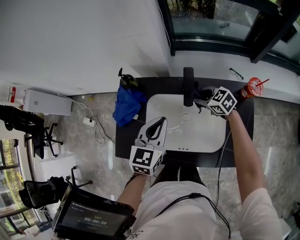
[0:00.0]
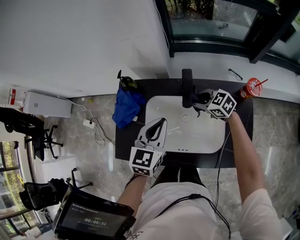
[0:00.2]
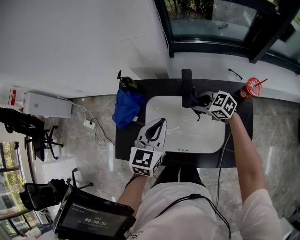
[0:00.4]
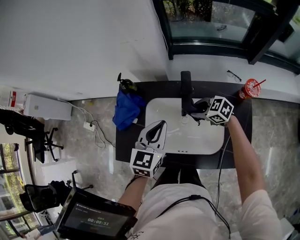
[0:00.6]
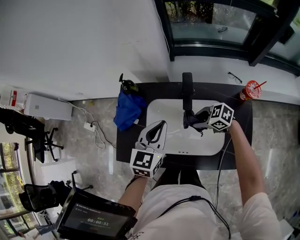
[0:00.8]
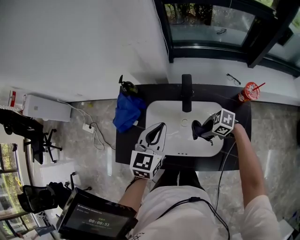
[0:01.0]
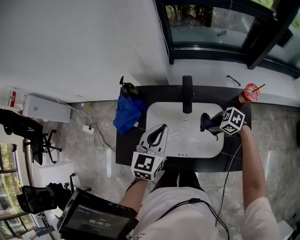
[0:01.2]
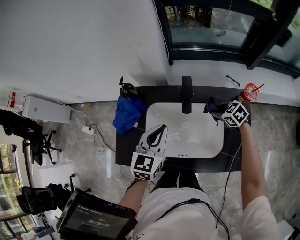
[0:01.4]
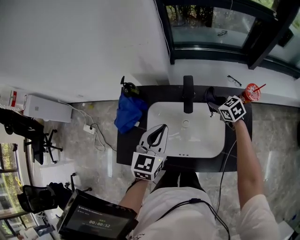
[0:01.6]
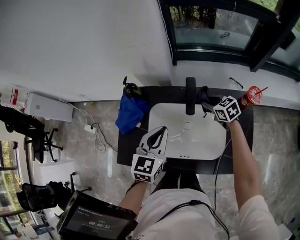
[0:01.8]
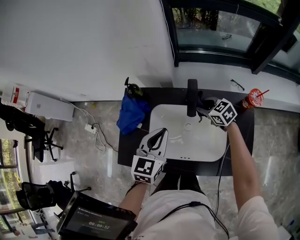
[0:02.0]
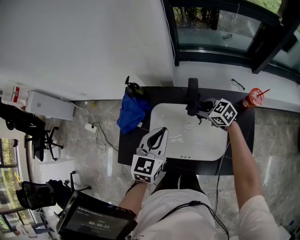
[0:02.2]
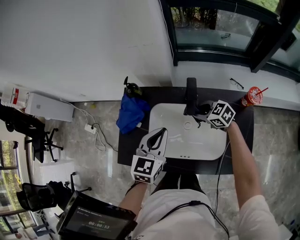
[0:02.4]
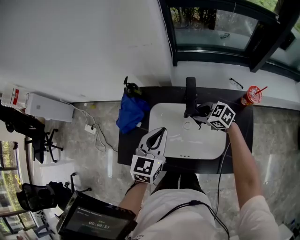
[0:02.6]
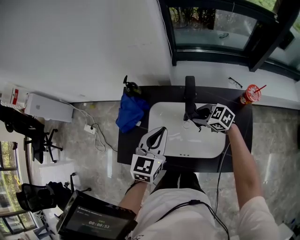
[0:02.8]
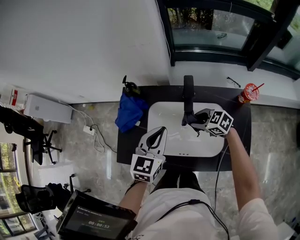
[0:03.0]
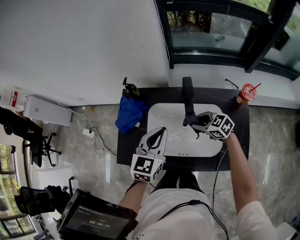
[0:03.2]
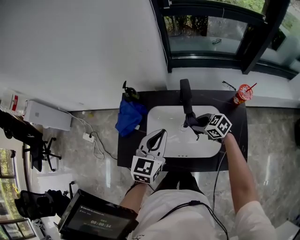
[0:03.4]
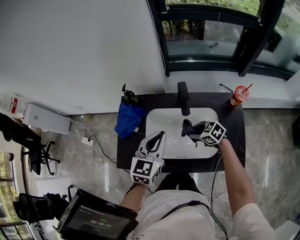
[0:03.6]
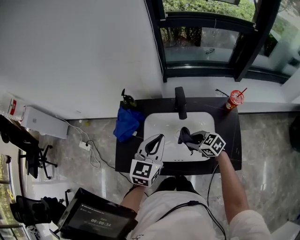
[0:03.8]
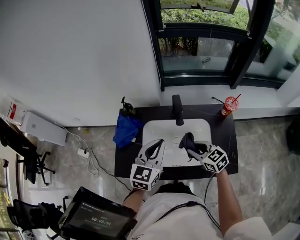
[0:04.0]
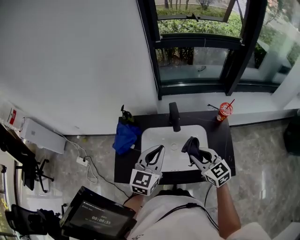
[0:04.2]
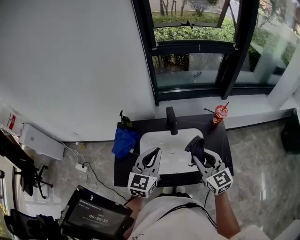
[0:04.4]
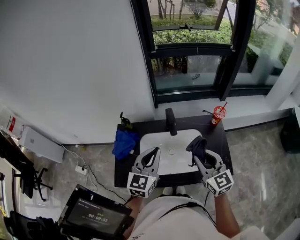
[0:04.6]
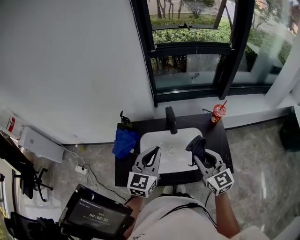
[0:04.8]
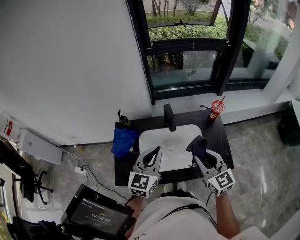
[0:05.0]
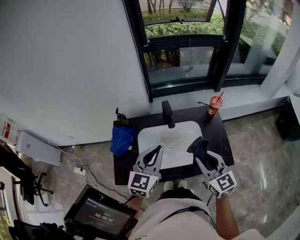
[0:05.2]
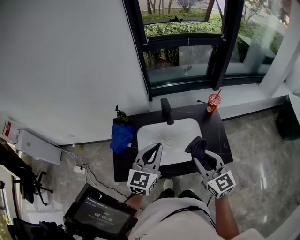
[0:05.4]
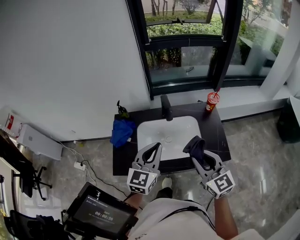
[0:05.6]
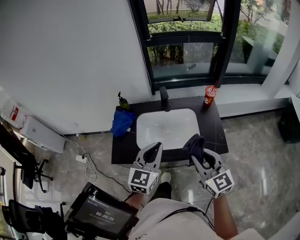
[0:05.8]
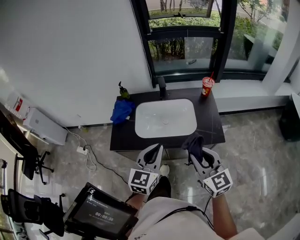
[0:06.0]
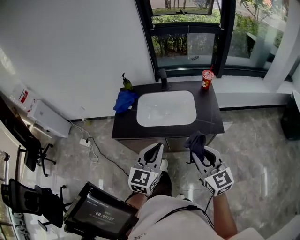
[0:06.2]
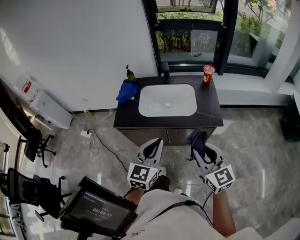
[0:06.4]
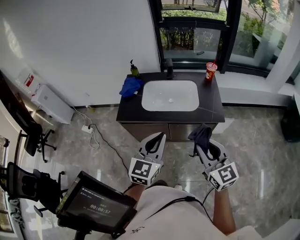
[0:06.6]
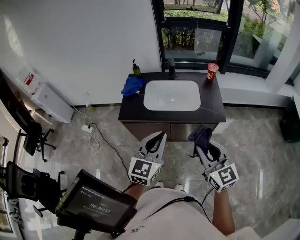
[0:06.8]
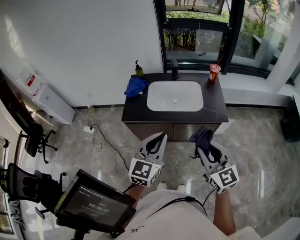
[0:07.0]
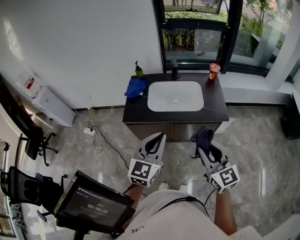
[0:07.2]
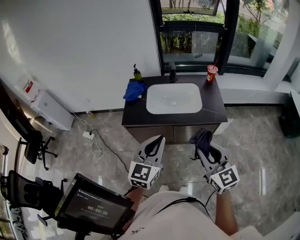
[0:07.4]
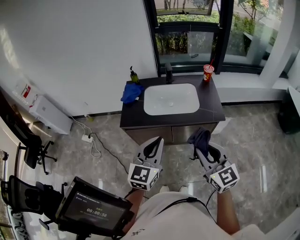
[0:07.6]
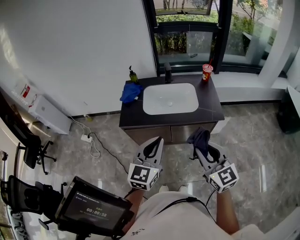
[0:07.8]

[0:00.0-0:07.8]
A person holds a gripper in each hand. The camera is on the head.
0:01.6 to 0:03.2: The right gripper travels to the left and backward by about 15 cm, and swivels some 20 degrees.
0:03.2 to 0:04.6: The left gripper heads upward, covering about 10 cm, while the right gripper travels upward by approximately 25 cm, and rotates approximately 50 degrees.
0:04.6 to 0:06.2: The grippers both shift backward by roughly 30 cm.
0:06.2 to 0:07.8: The right gripper moves backward, roughly 10 cm. The left gripper shifts about 10 cm backward and to the left.

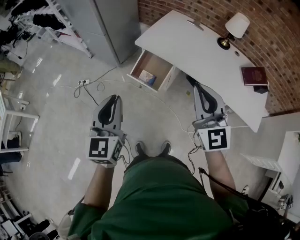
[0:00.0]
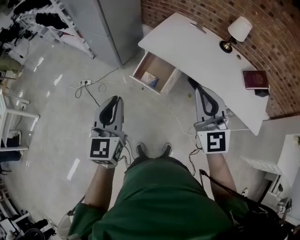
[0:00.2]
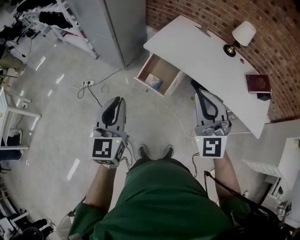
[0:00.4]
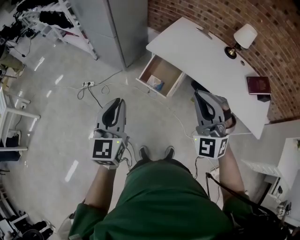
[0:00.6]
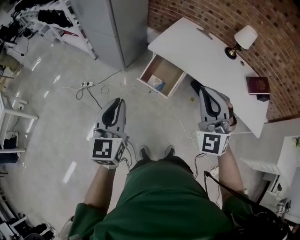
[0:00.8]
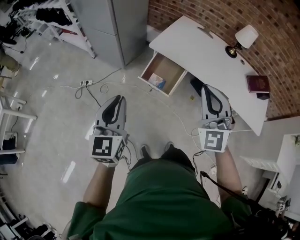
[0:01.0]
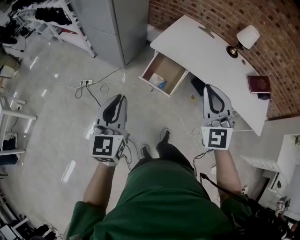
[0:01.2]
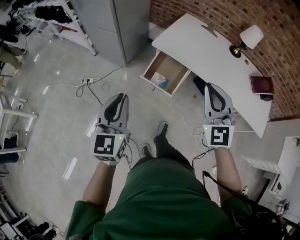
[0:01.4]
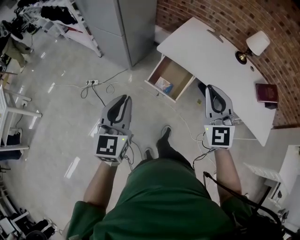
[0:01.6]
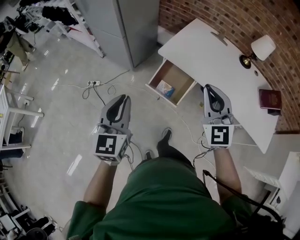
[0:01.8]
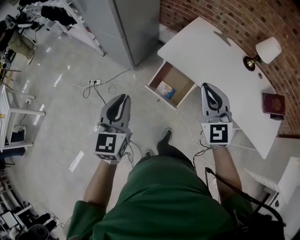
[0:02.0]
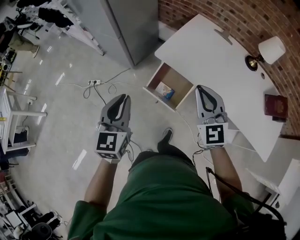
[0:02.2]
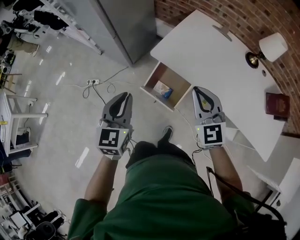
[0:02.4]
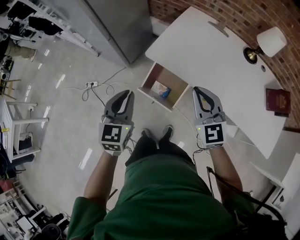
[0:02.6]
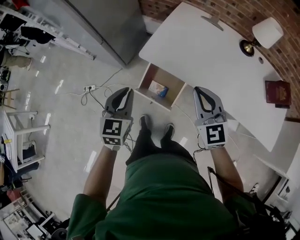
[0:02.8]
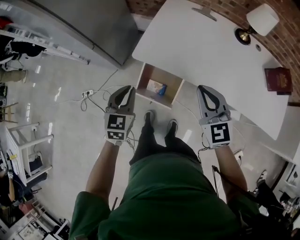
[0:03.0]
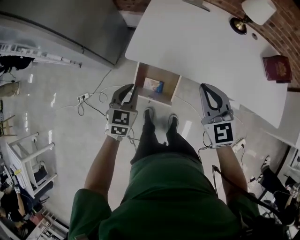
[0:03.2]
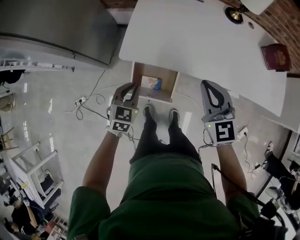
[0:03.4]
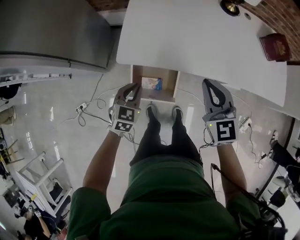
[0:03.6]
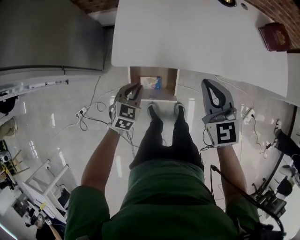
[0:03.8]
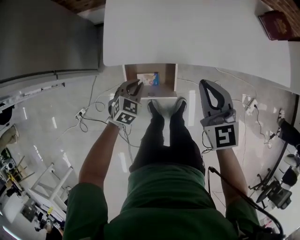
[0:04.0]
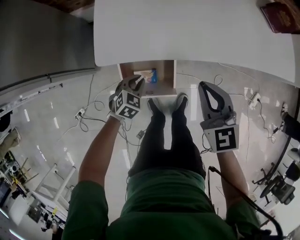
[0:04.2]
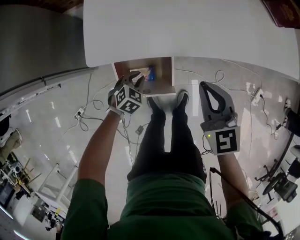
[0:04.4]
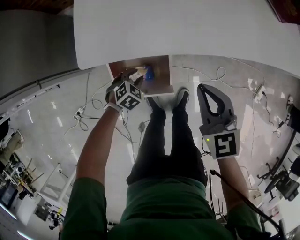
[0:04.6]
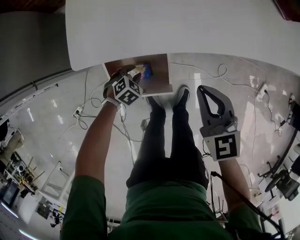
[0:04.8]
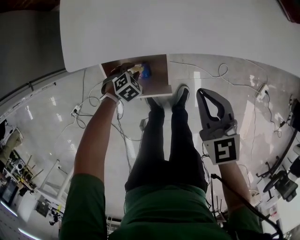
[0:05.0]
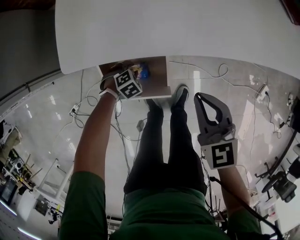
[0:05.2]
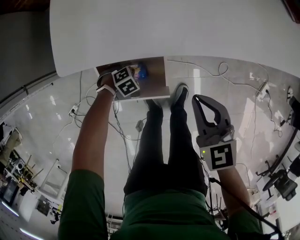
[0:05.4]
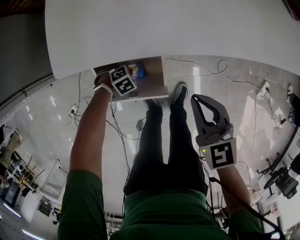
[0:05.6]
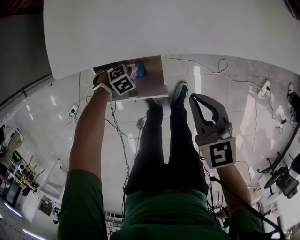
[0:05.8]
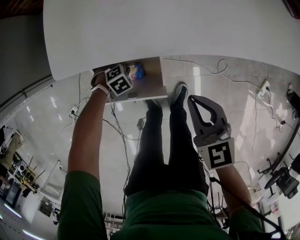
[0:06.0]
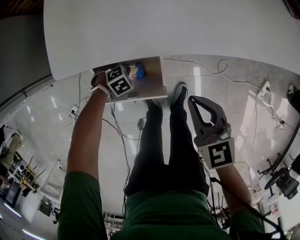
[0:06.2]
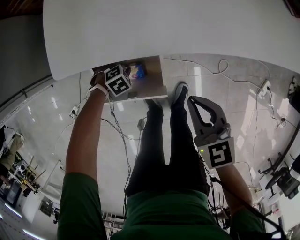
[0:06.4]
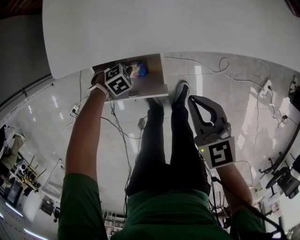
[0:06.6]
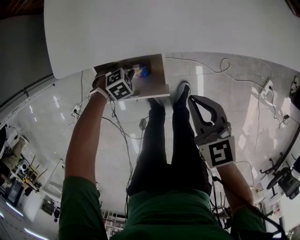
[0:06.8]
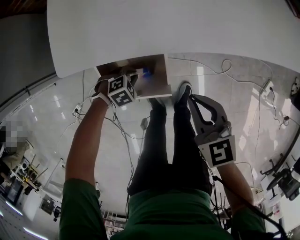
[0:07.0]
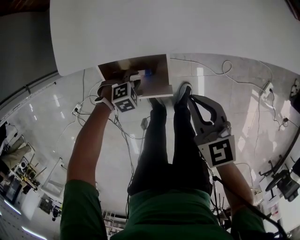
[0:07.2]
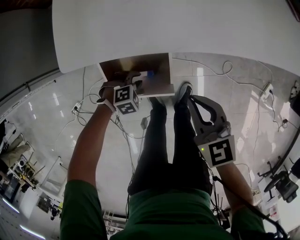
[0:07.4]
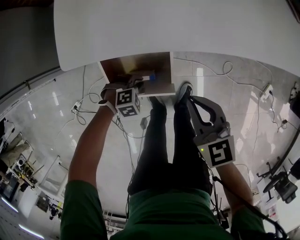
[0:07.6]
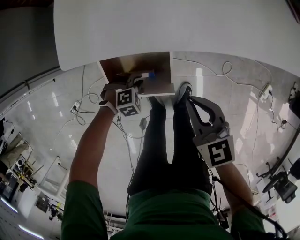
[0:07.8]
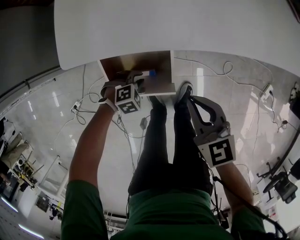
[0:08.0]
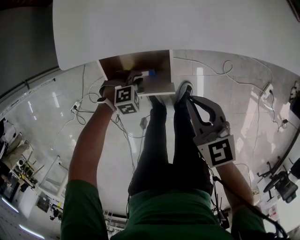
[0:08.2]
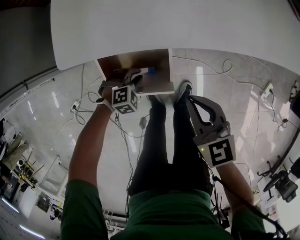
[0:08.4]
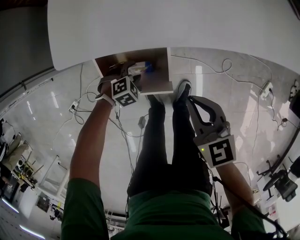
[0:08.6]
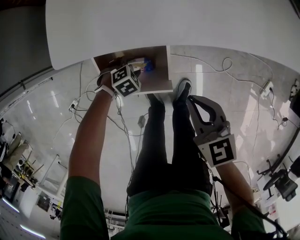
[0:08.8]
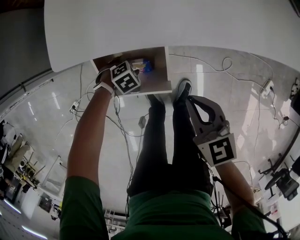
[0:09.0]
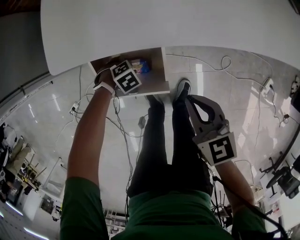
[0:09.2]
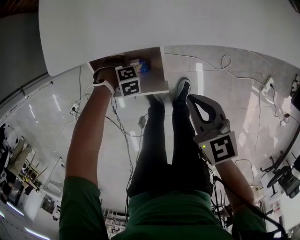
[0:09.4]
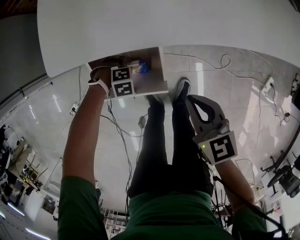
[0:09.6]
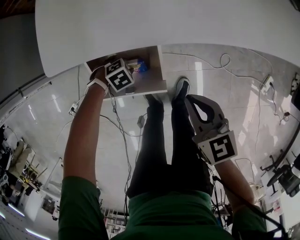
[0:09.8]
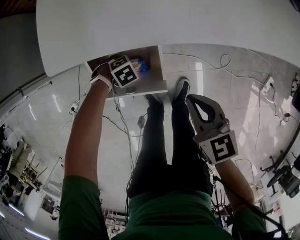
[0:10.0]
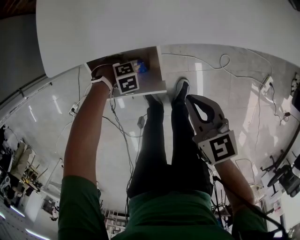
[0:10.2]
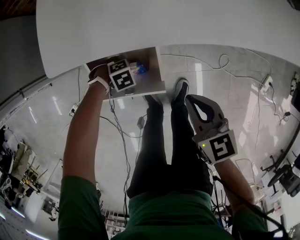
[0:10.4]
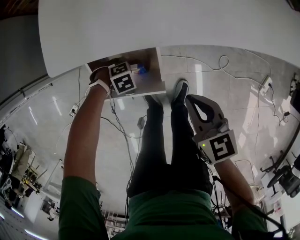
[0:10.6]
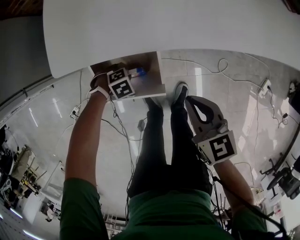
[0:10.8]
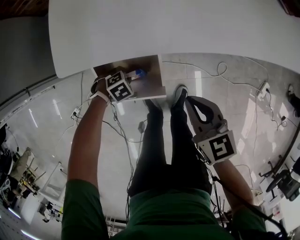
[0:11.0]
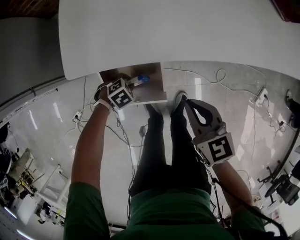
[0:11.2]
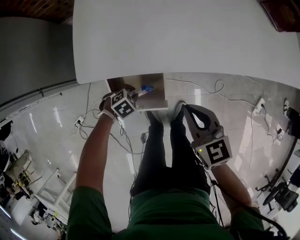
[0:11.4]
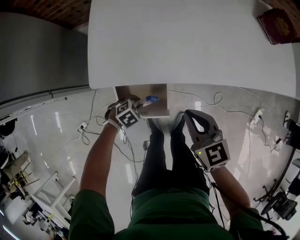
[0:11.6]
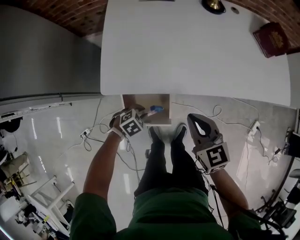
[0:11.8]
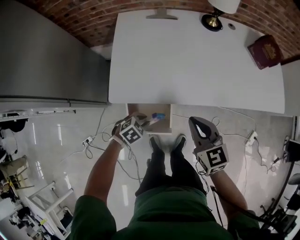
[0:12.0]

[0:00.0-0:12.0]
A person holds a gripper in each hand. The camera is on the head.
0:00.0 to 0:01.6: The left gripper moves to the left and forward, roughly 15 cm. Meanwhile the right gripper travels forward and to the left by roughly 15 cm.
0:01.6 to 0:03.0: The two grippers go roughly 30 cm forward, downward and to the right. The left gripper swivels about 30 degrees; the right gripper turns by roughly 20 degrees.
0:03.0 to 0:04.4: The left gripper travels downward by about 35 cm, and tips its fingers downward by about 30 degrees, while the right gripper travels downward by roughly 15 cm, and rotates some 30 degrees.
0:04.4 to 0:06.0: Both grippers move downward, about 15 cm. The left gripper swivels roughly 30 degrees.
0:06.0 to 0:07.6: The left gripper ends up about 10 cm from where it was.
0:07.6 to 0:09.0: The left gripper shifts by some 5 cm, and opens.
0:09.0 to 0:10.4: The left gripper closes its fingers.
0:10.4 to 0:12.0: The two grippers go roughly 25 cm upward. The left gripper turns by roughly 40 degrees.

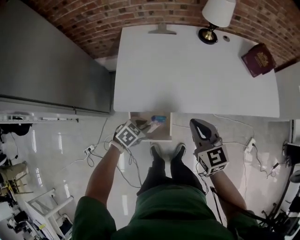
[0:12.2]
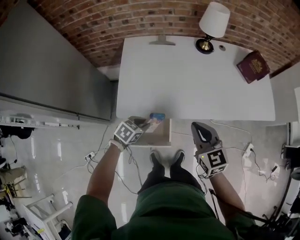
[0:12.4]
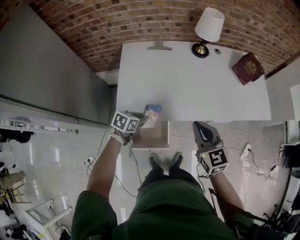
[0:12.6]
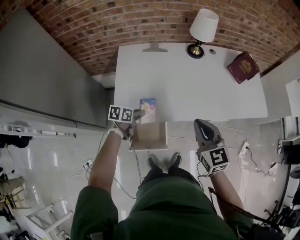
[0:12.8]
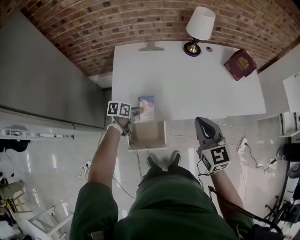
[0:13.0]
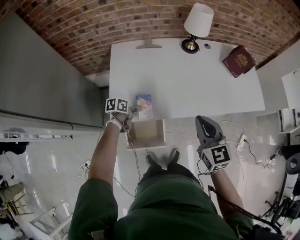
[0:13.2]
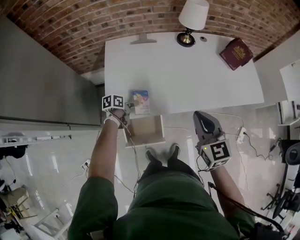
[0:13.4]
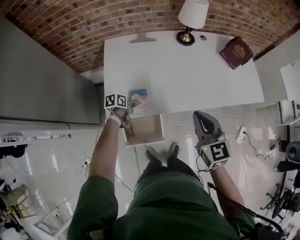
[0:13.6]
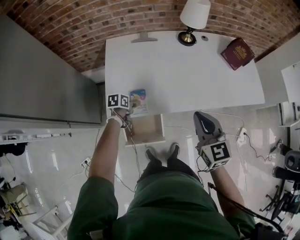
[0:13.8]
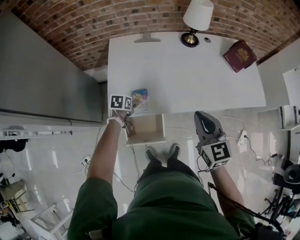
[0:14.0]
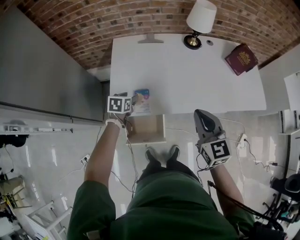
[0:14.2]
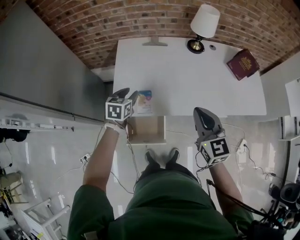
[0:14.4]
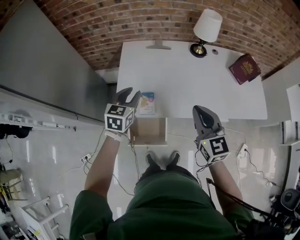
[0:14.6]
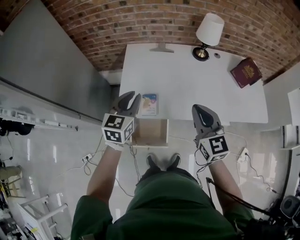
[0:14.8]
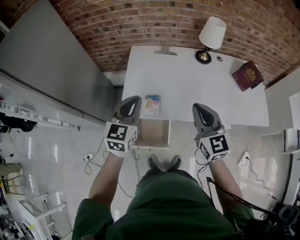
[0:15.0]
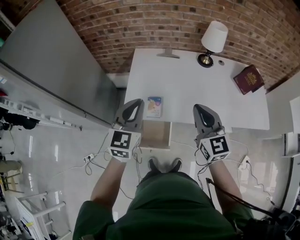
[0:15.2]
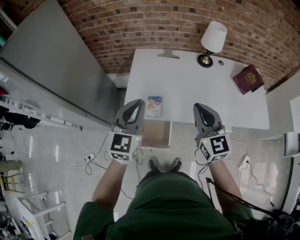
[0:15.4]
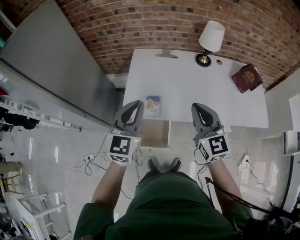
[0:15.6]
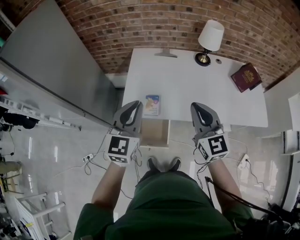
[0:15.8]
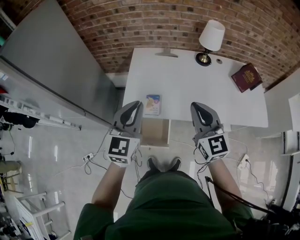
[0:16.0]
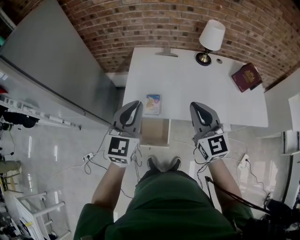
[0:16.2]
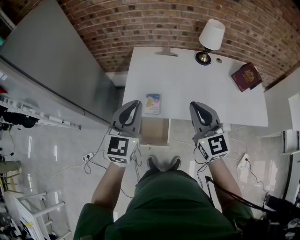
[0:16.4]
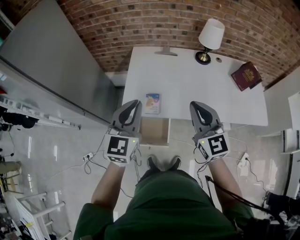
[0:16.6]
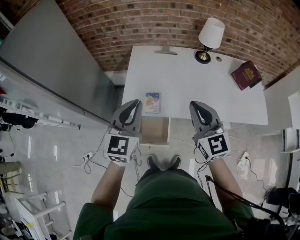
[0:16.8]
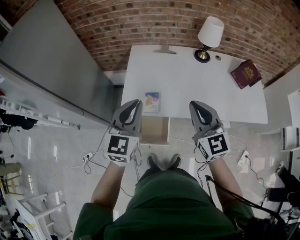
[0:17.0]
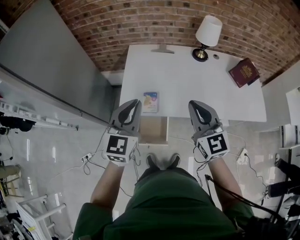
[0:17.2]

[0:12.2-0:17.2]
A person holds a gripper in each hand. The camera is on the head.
0:12.2 to 0:13.8: The right gripper shifts about 5 cm upward. Meanwhile the left gripper heads forward and to the left, covering roughly 15 cm, rotates around the line of its fingers by some 50 degrees, counterclockwise from behind, and opens its fingers.
0:13.8 to 0:15.6: The left gripper goes approximately 40 cm upward, tips its fingers upward by roughly 50 degrees, and closes, while the right gripper is displaced upward by roughly 10 cm, and changes its angle by some 20 degrees.
0:15.6 to 0:17.2: There are only small adjustments of the grippers.
